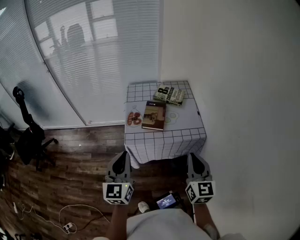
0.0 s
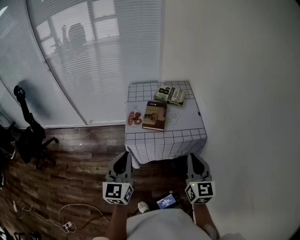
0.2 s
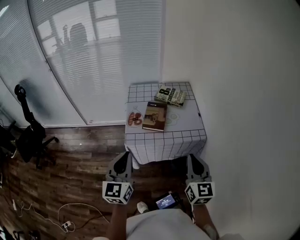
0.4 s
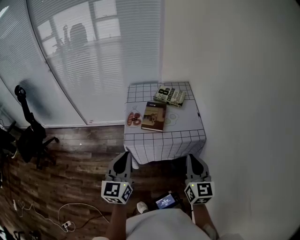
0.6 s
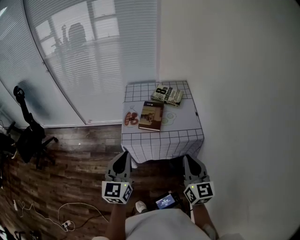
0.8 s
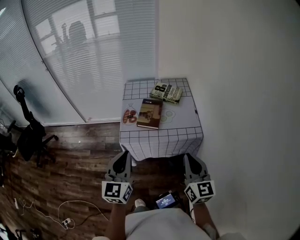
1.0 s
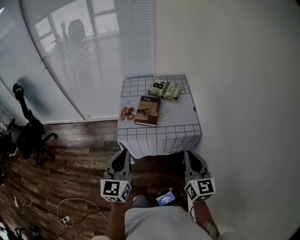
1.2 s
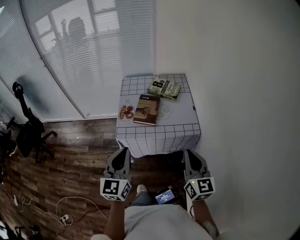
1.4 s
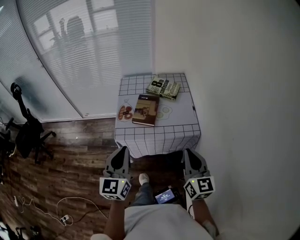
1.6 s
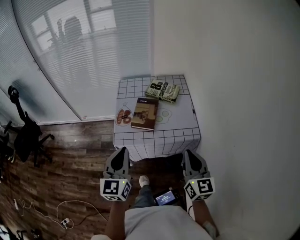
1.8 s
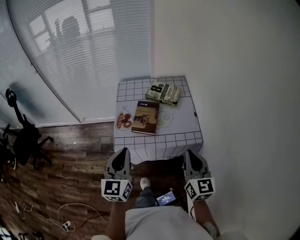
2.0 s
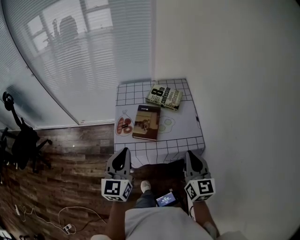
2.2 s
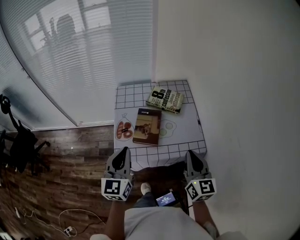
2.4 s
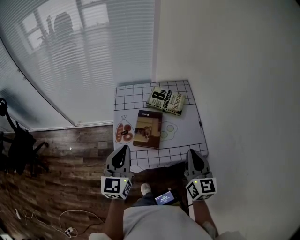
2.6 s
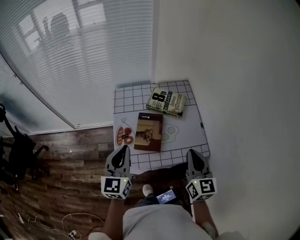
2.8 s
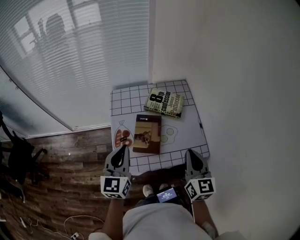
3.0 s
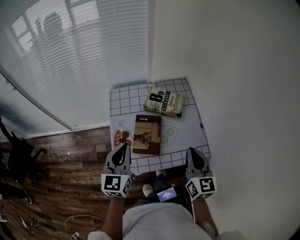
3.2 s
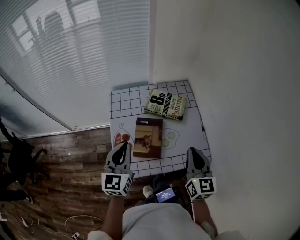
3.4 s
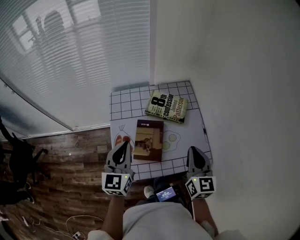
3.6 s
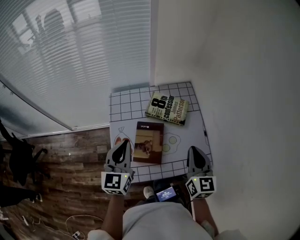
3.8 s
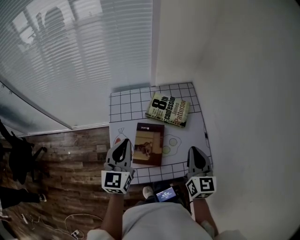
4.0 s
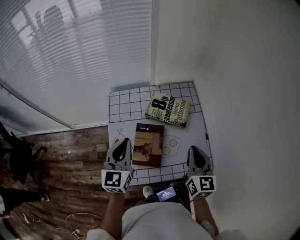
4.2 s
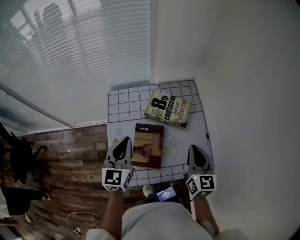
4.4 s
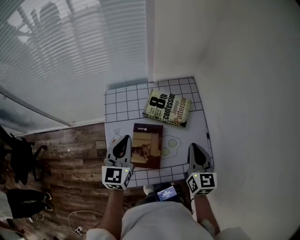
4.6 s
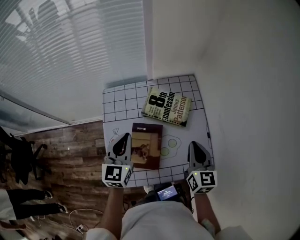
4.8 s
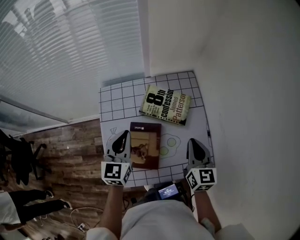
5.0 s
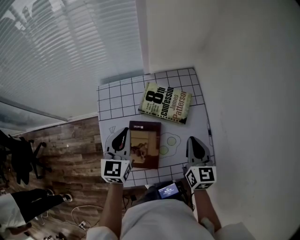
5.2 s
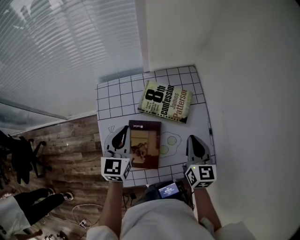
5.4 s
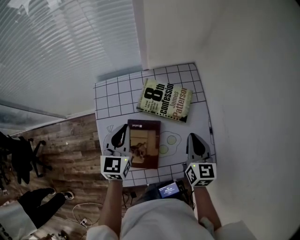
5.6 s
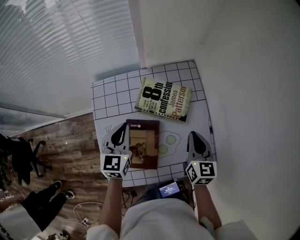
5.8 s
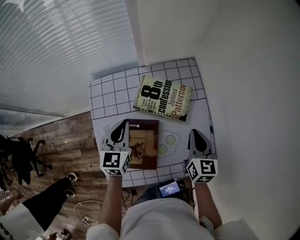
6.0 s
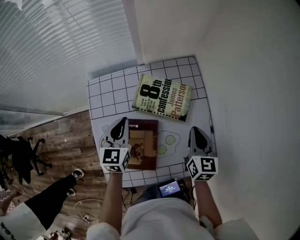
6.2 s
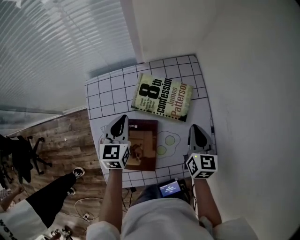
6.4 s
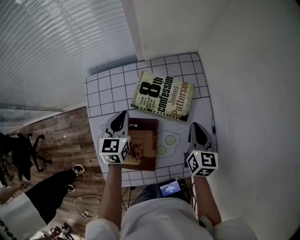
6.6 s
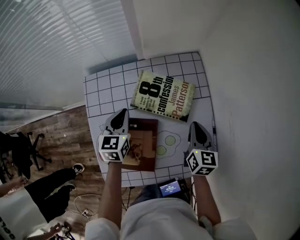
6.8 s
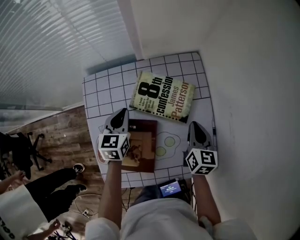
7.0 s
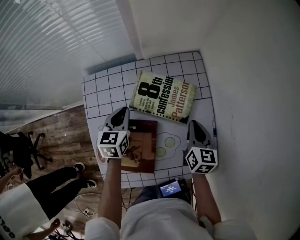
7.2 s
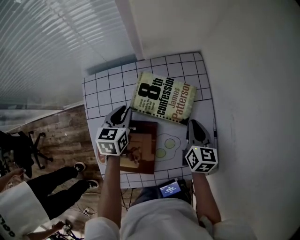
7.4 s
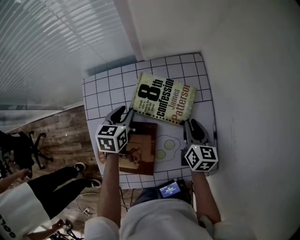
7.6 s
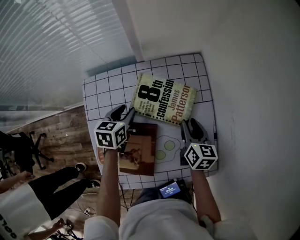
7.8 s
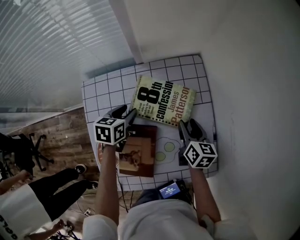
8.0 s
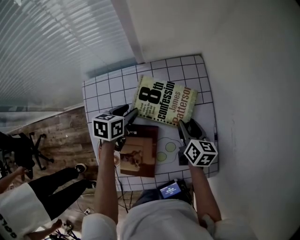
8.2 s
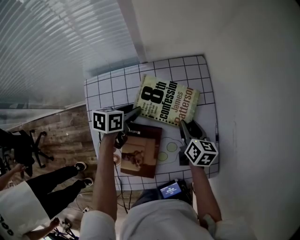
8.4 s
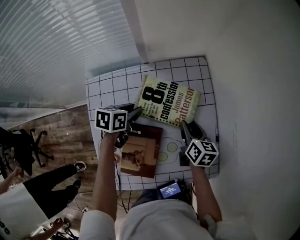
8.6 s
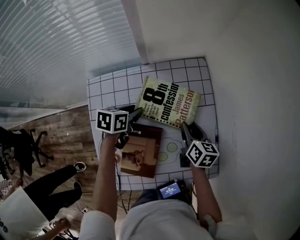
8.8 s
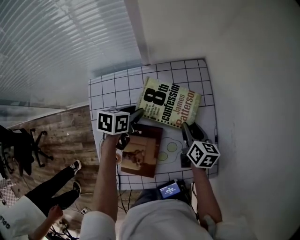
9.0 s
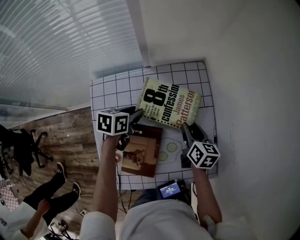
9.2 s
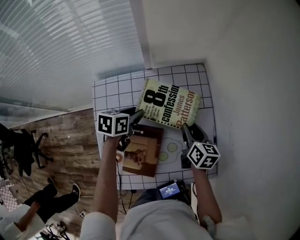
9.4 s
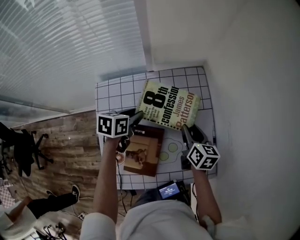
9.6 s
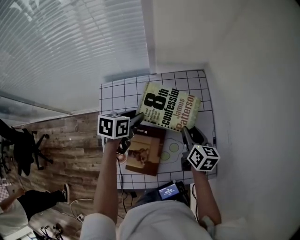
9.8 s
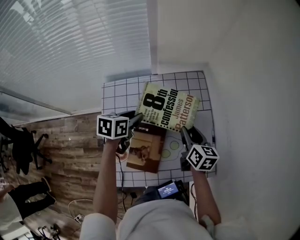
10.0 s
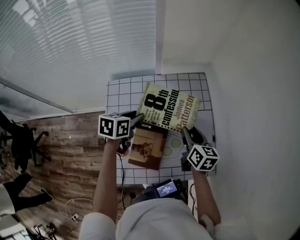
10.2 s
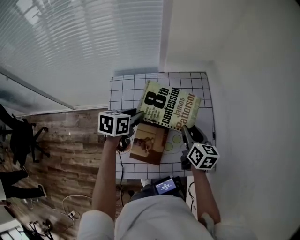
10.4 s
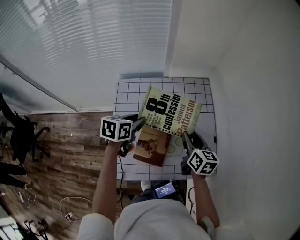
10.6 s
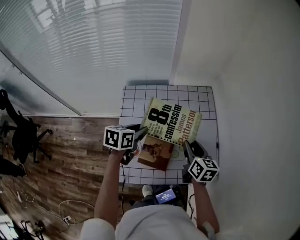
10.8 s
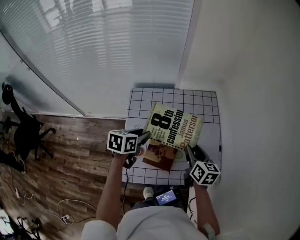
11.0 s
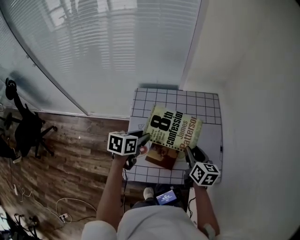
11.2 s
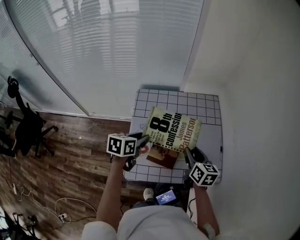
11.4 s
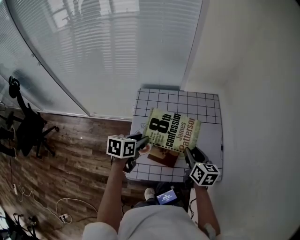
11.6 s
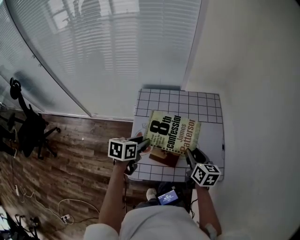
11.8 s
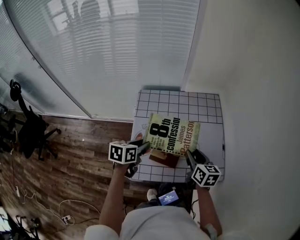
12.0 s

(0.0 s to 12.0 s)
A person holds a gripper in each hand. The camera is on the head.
0.0 s - 1.6 s: Both grippers move to the right, about 5 cm.
1.6 s - 3.0 s: The grippers both shift forward by about 25 cm.
3.0 s - 4.4 s: Both grippers move forward, some 15 cm.
4.4 s - 6.0 s: The grippers both shift downward and forward by roughly 15 cm.
6.0 s - 7.6 s: Both grippers move downward and forward, about 10 cm. The left gripper swivels about 20 degrees, and opens.
7.6 s - 9.0 s: The left gripper swivels approximately 20 degrees.
9.0 s - 10.4 s: The left gripper changes place by roughly 5 cm.
10.4 s - 12.0 s: The left gripper heads backward, covering some 20 cm; the right gripper travels backward, upward and to the left by some 20 cm.

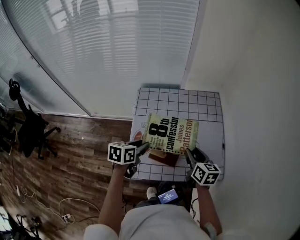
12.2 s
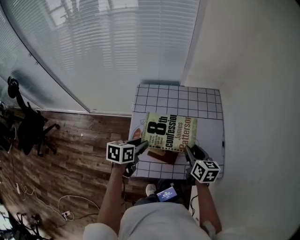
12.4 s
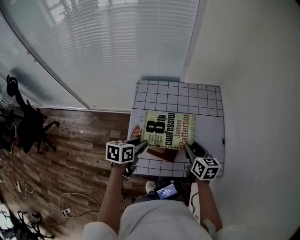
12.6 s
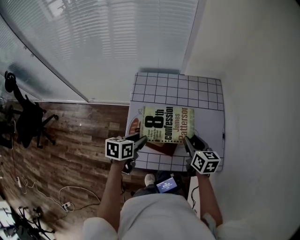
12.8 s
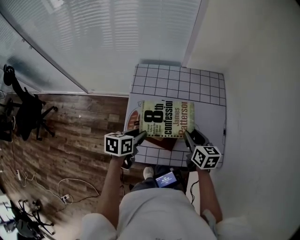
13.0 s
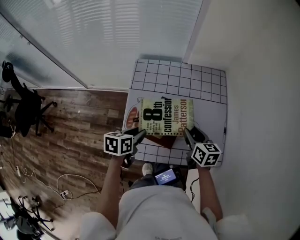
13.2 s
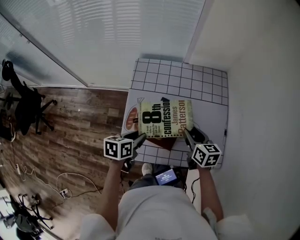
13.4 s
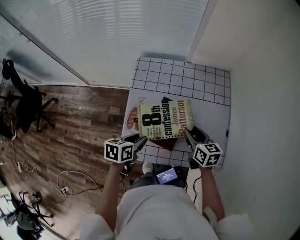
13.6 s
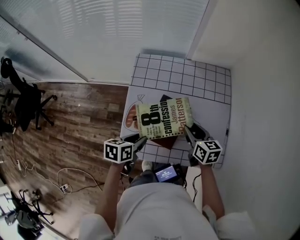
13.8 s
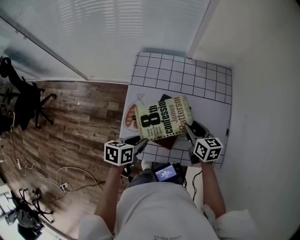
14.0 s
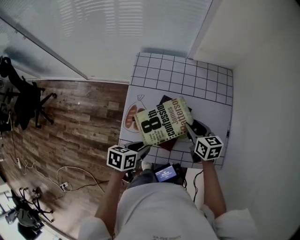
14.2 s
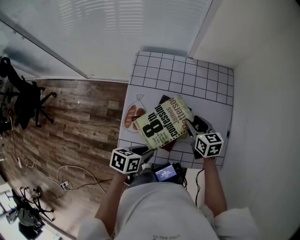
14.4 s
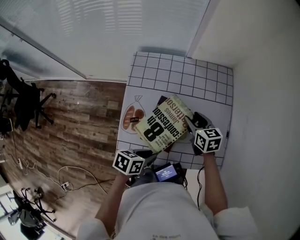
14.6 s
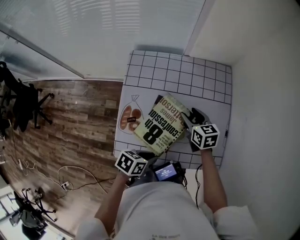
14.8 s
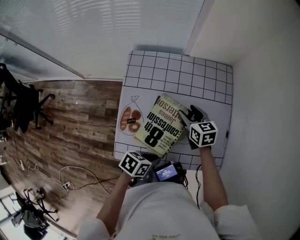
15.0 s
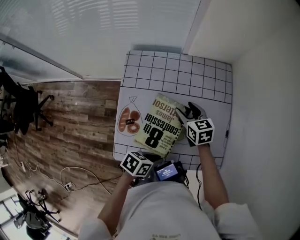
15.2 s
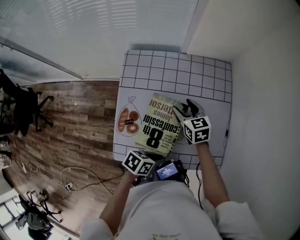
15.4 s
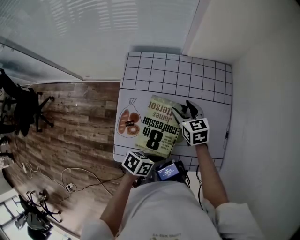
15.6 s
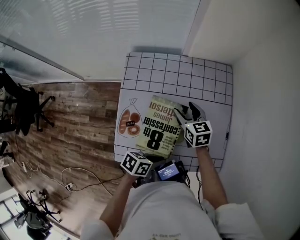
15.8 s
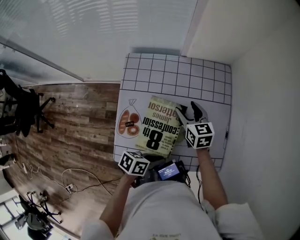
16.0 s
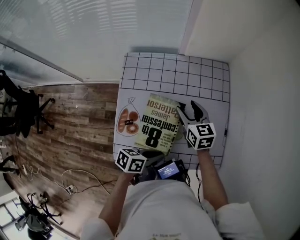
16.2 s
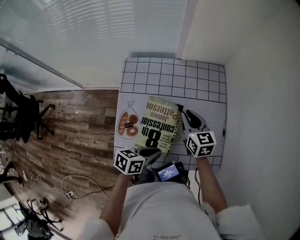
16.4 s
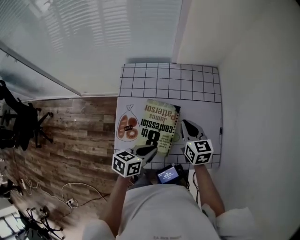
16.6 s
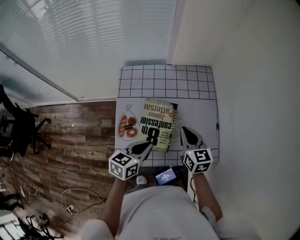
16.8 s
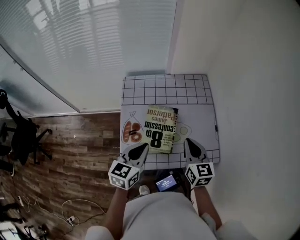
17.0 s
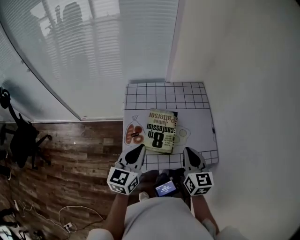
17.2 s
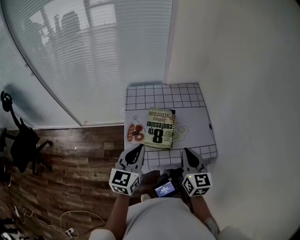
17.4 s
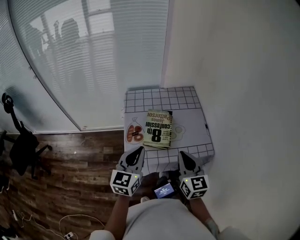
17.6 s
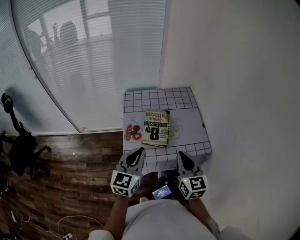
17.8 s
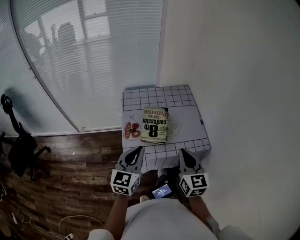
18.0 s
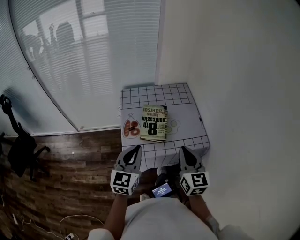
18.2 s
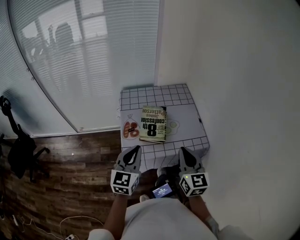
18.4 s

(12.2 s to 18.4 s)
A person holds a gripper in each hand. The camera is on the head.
12.2 s - 13.8 s: The left gripper shifts approximately 10 cm downward and backward. Meanwhile the right gripper goes about 5 cm downward.
13.8 s - 15.4 s: The right gripper moves forward and to the left, roughly 10 cm, and opens, while the left gripper moves to the right, roughly 15 cm, rotates approximately 30 degrees, and closes its fingers.
15.4 s - 16.8 s: The right gripper heads backward, upward and to the right, covering some 15 cm, and closes its fingers. The left gripper heads upward and to the left, covering roughly 15 cm, and rotates roughly 40 degrees.
16.8 s - 18.4 s: Both grippers travel together backward and upward, approximately 25 cm. The left gripper changes its angle by some 40 degrees; the right gripper swivels about 20 degrees.

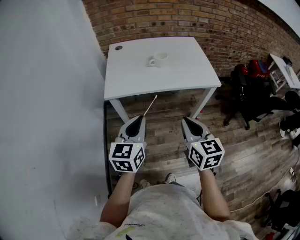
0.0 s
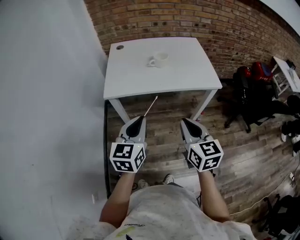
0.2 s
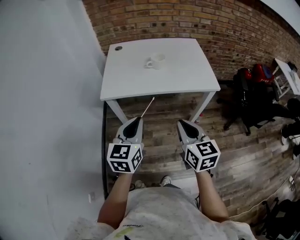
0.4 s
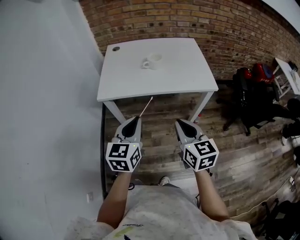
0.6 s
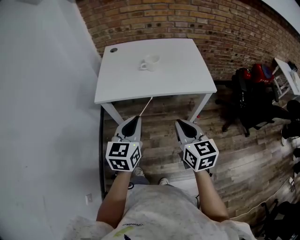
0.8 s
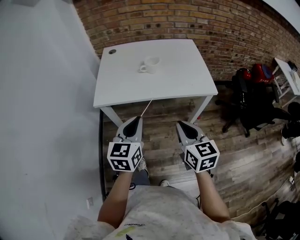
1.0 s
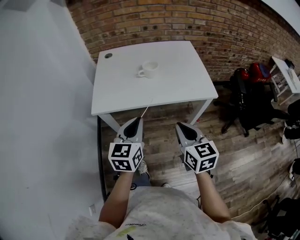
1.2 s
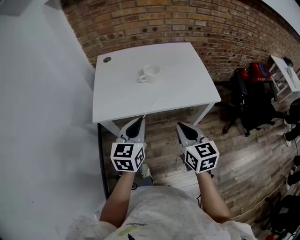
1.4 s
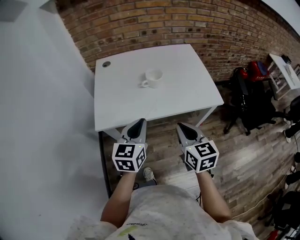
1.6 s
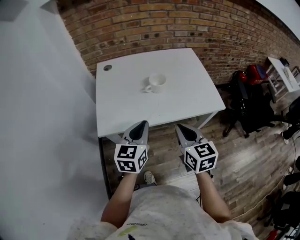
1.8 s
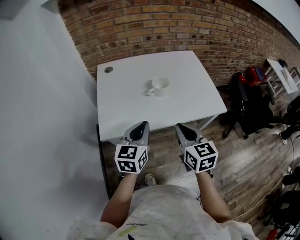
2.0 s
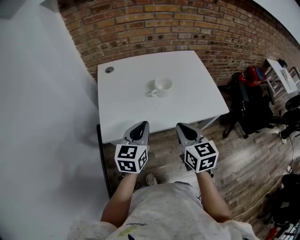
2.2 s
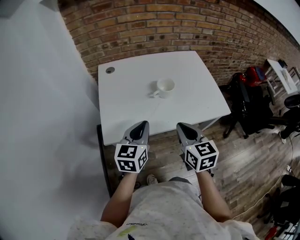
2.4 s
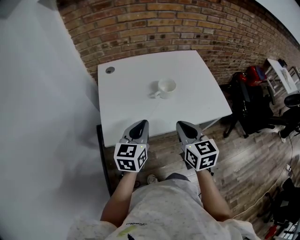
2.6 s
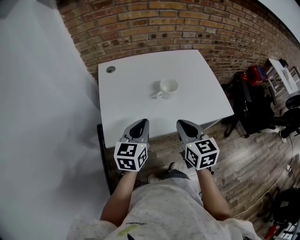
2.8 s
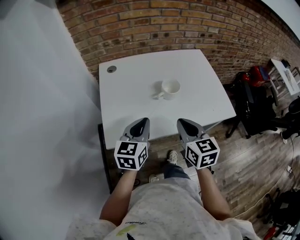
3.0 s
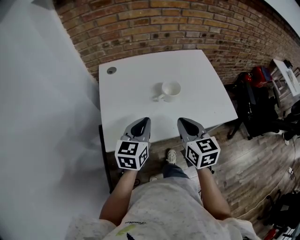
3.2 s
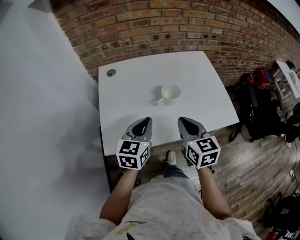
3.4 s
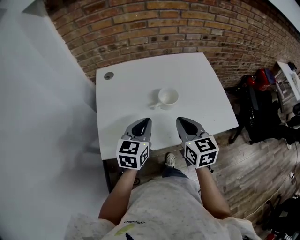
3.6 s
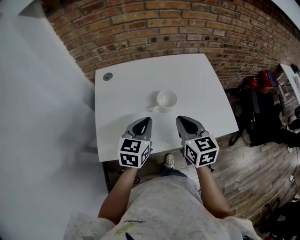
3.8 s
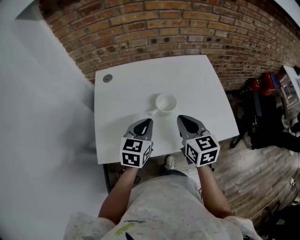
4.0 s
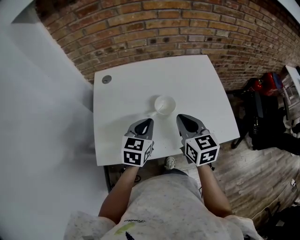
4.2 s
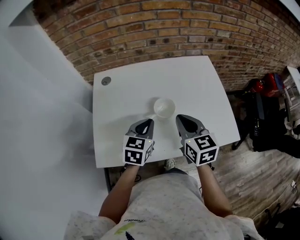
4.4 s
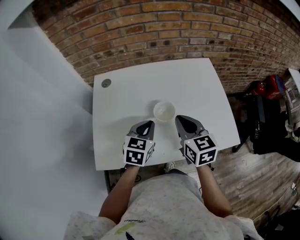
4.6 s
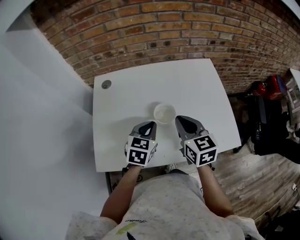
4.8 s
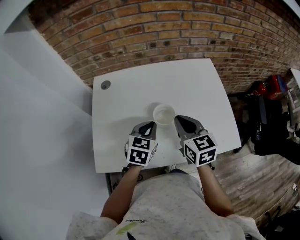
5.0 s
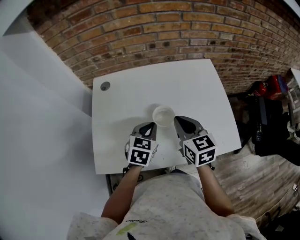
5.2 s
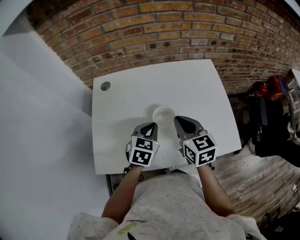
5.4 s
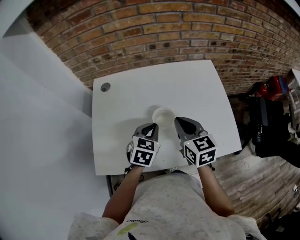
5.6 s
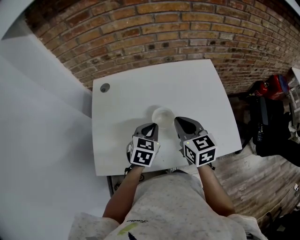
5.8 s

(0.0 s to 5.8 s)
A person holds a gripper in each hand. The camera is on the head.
0.0 s - 1.4 s: The grippers both shift forward by about 15 cm.
1.4 s - 2.8 s: The two grippers go approximately 20 cm forward and to the left.
2.8 s - 4.4 s: The right gripper travels forward by approximately 20 cm, while the left gripper heads forward and to the right, covering approximately 20 cm.
4.4 s - 5.8 s: The left gripper shifts by about 5 cm. Meanwhile the right gripper is displaced forward by approximately 5 cm.
